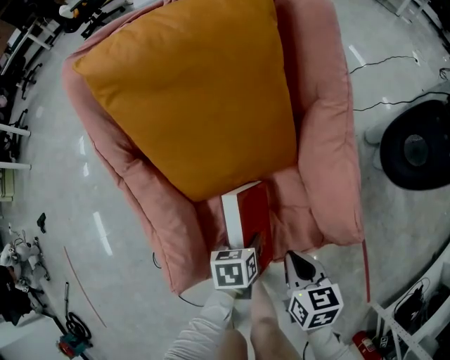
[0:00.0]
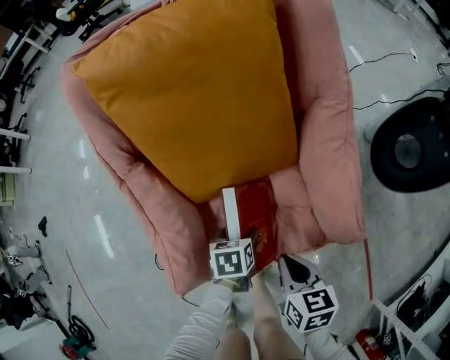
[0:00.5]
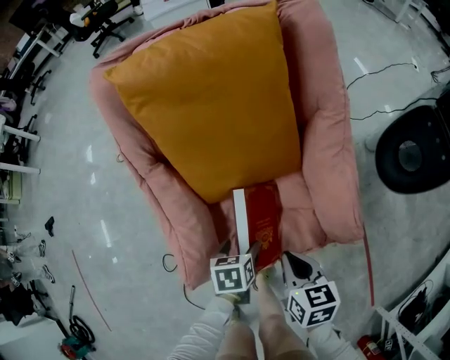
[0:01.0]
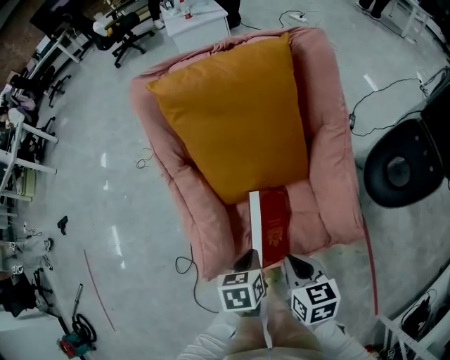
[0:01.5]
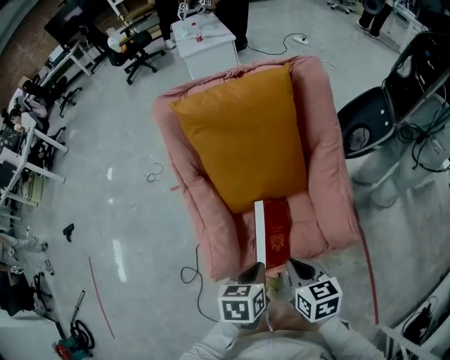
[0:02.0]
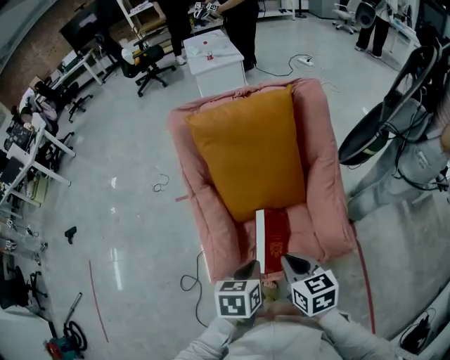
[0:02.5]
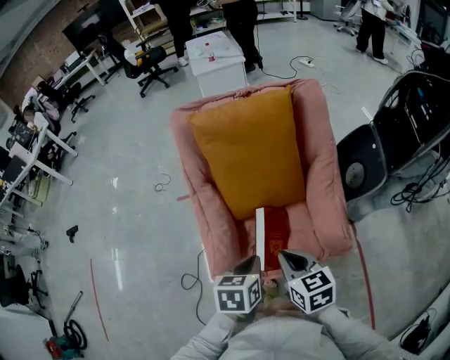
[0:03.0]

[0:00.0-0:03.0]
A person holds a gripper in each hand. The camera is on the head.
0:00.0 to 0:01.5: The right gripper moves upward and to the left, roughly 10 cm. Meanwhile the left gripper goes some 15 cm upward, and closes.
0:01.5 to 0:03.0: The grippers both shift upward by roughly 10 cm.

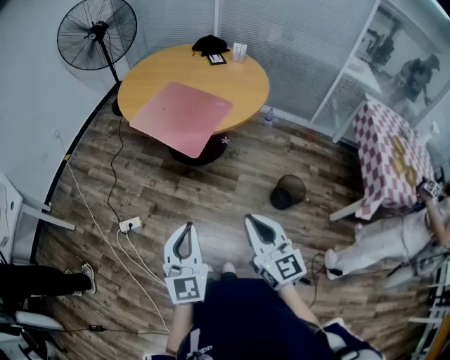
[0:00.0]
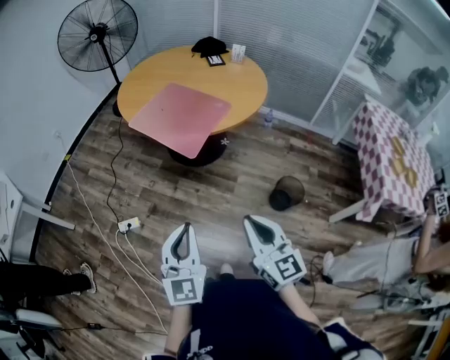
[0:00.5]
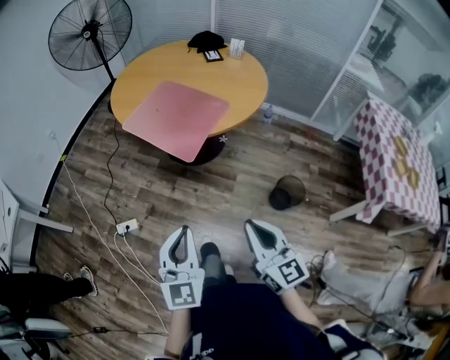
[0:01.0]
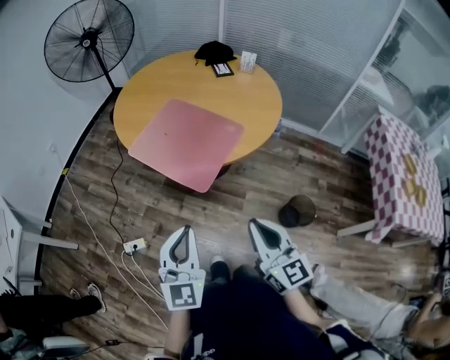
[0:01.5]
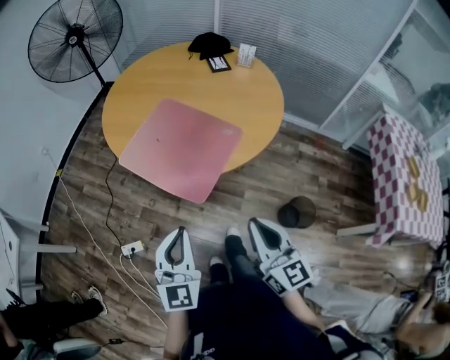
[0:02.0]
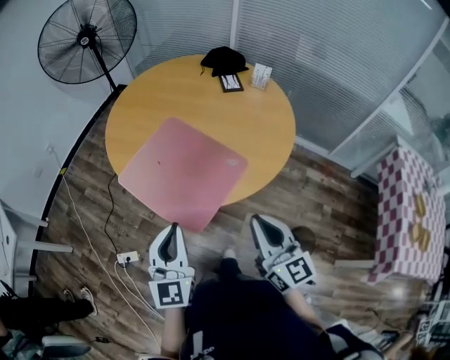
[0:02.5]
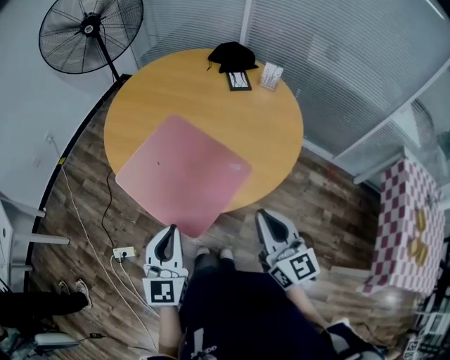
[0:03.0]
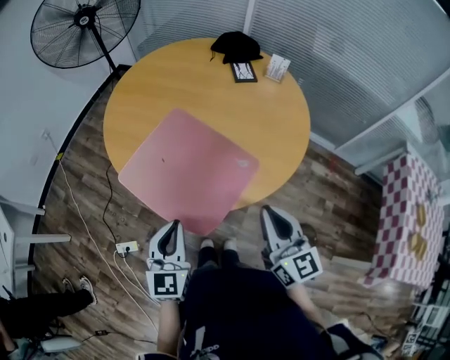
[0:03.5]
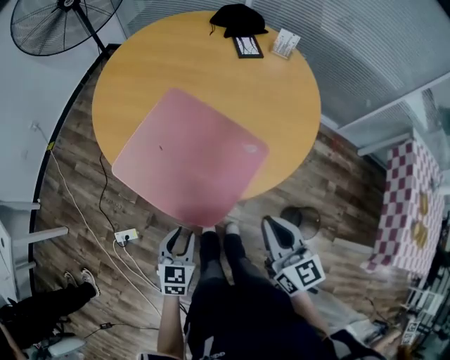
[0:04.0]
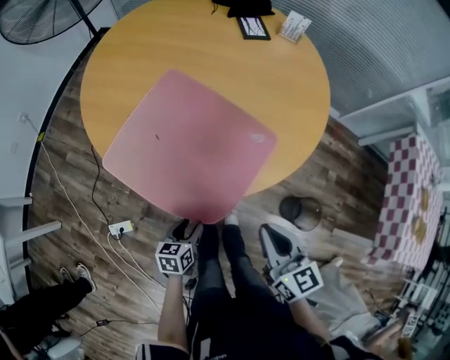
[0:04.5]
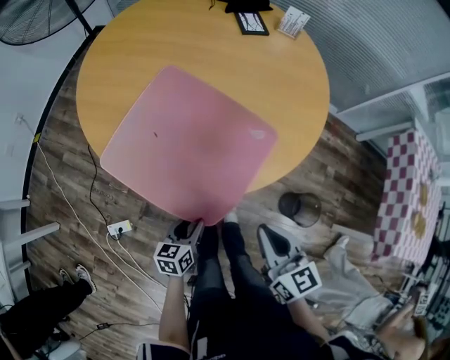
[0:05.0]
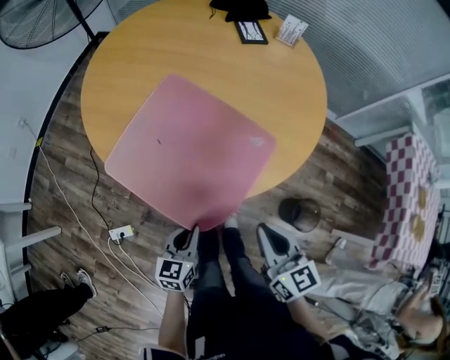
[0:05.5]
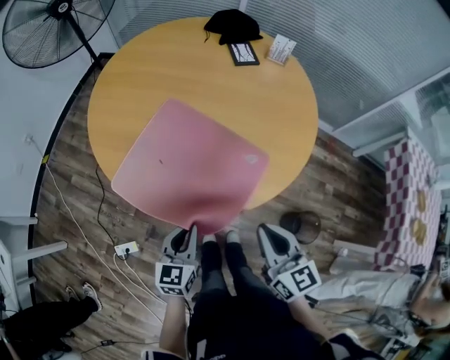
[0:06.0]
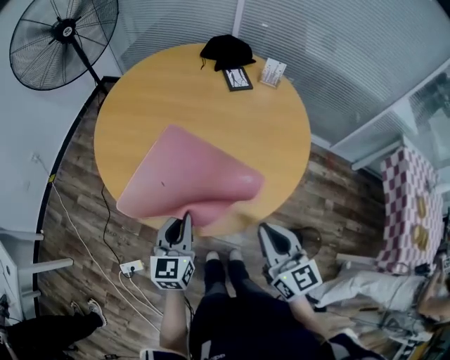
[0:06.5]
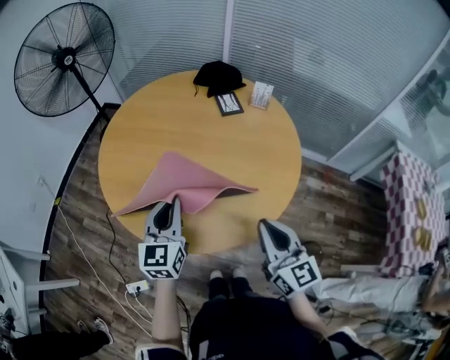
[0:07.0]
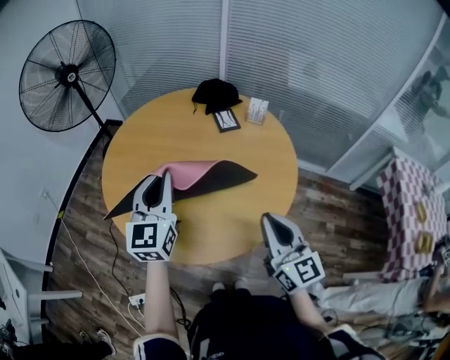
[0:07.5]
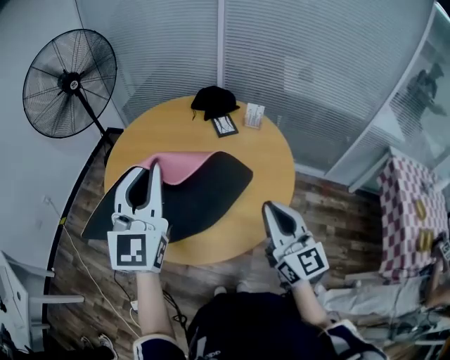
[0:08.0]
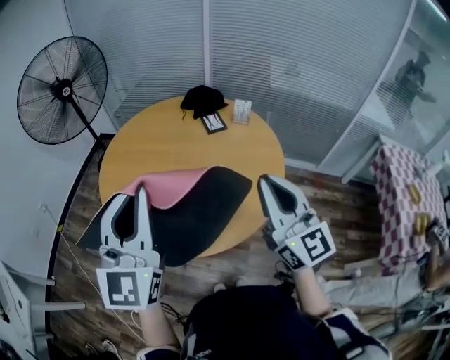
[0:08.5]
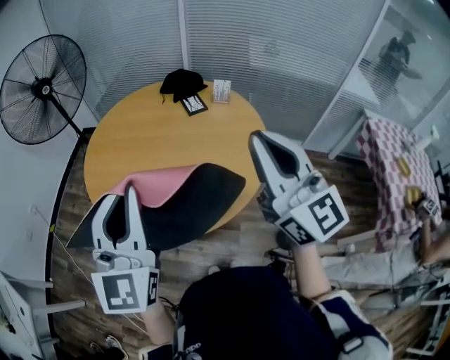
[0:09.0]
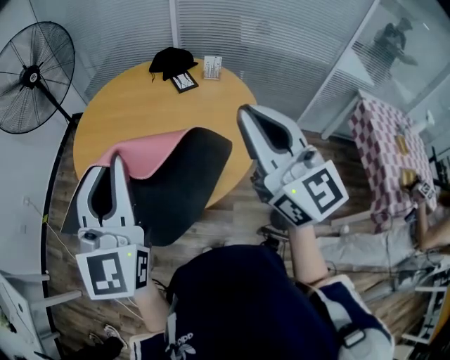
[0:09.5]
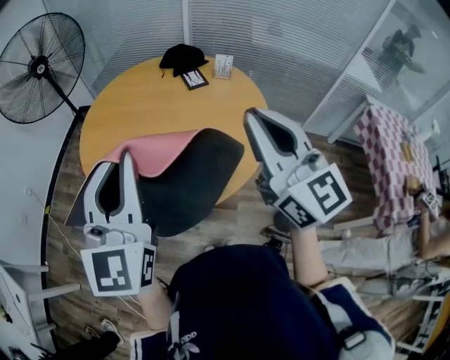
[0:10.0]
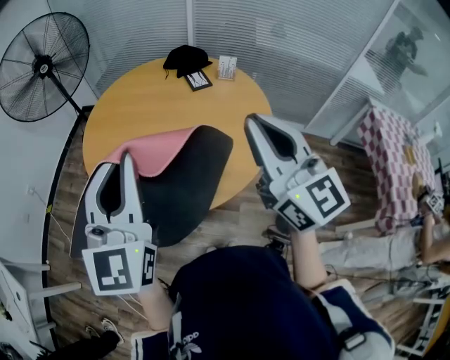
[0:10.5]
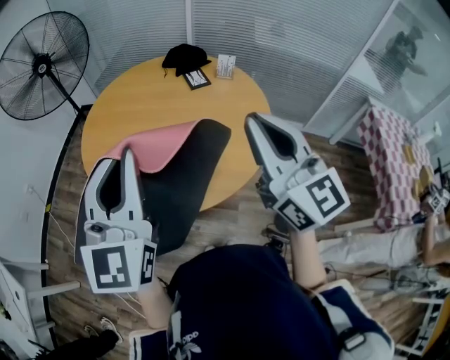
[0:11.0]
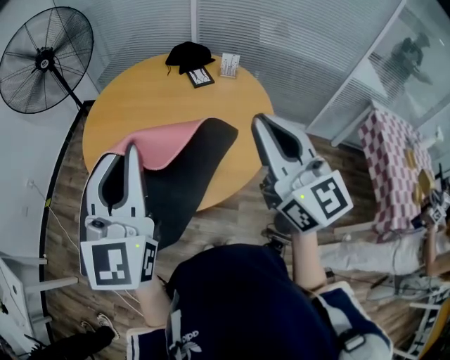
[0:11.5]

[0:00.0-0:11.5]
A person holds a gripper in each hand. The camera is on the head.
0:00.0 to 0:02.0: Both grippers move forward, some 25 cm.
0:02.0 to 0:04.0: The left gripper heads downward and forward, covering about 25 cm, angles its fingers downward, by about 30 degrees, and opens up, while the right gripper shifts roughly 15 cm forward.
0:04.0 to 0:06.0: The left gripper is displaced forward by some 5 cm, reaches roughly 10 cm downward, then returns, and closes up.
0:06.0 to 0:07.5: The left gripper shifts some 35 cm upward and forward, and turns by some 30 degrees. The right gripper is displaced upward and forward by approximately 15 cm, and rotates roughly 20 degrees.
0:07.5 to 0:09.5: The left gripper is displaced backward and upward by approximately 20 cm. The right gripper travels upward by some 20 cm.
0:09.5 to 0:11.5: The grippers move only a little.

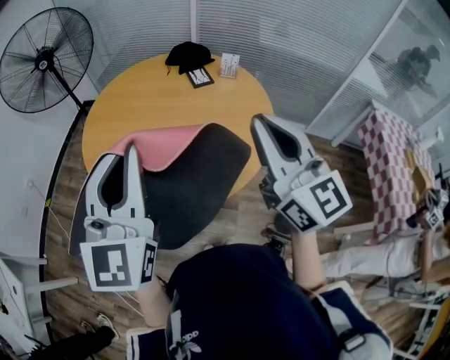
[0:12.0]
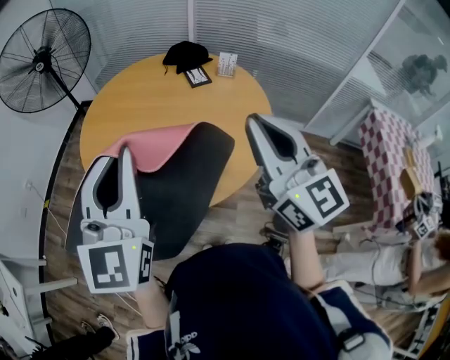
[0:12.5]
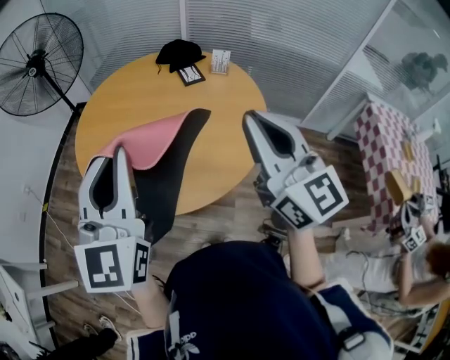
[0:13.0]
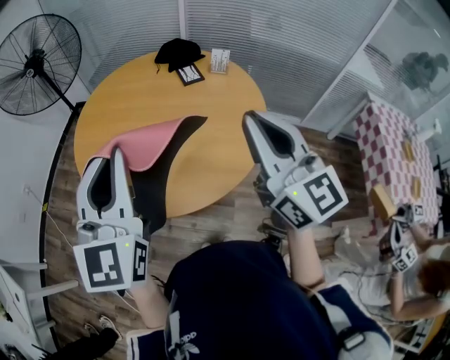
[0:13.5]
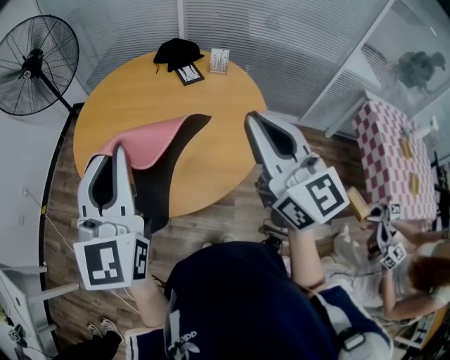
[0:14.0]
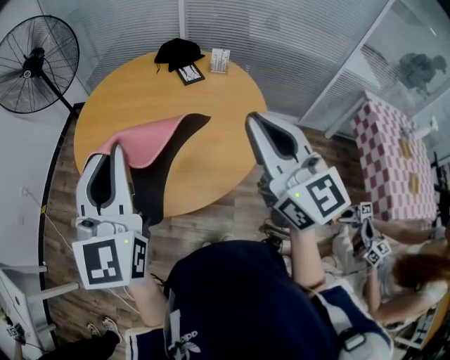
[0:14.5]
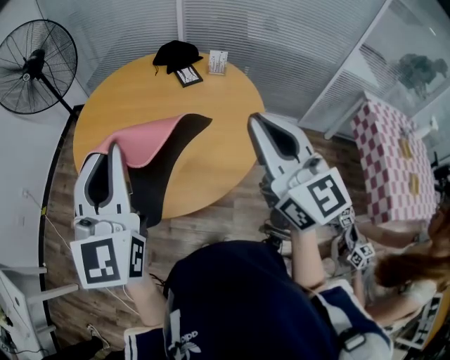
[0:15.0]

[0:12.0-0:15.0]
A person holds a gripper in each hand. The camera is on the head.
0:12.0 to 0:15.0: The grippers stay close to where they were, moving slightly.

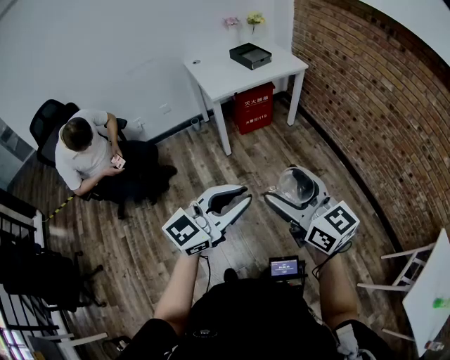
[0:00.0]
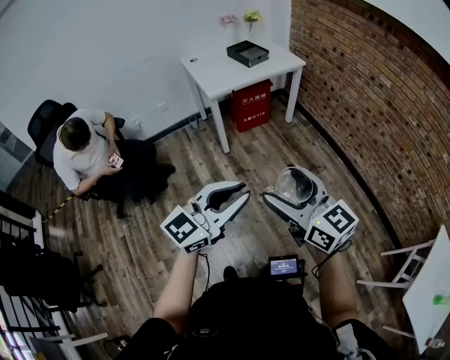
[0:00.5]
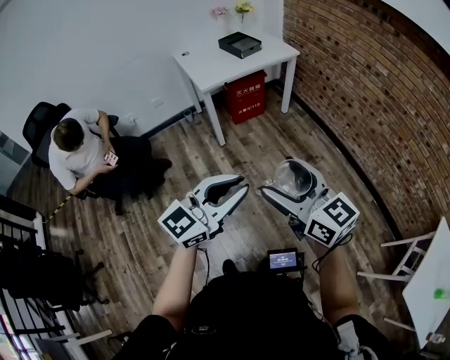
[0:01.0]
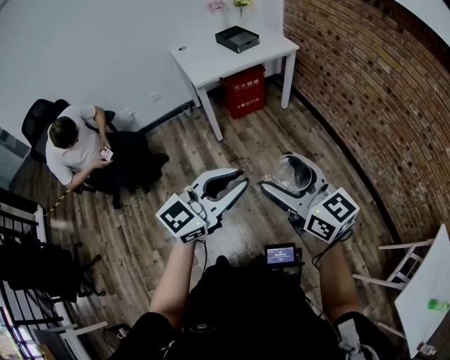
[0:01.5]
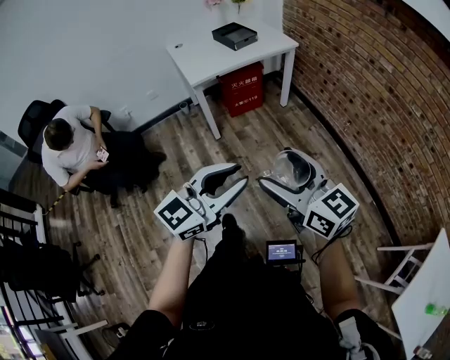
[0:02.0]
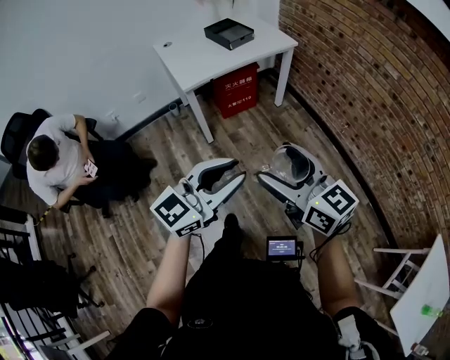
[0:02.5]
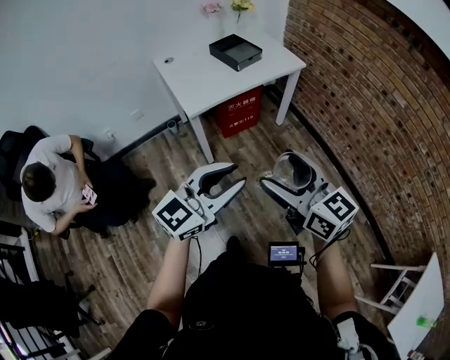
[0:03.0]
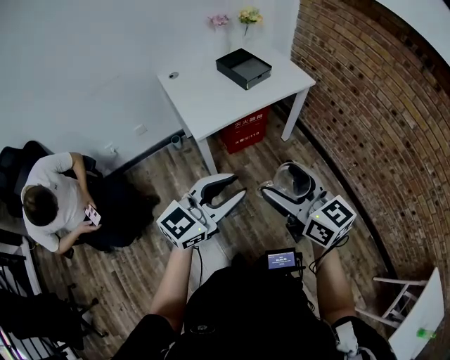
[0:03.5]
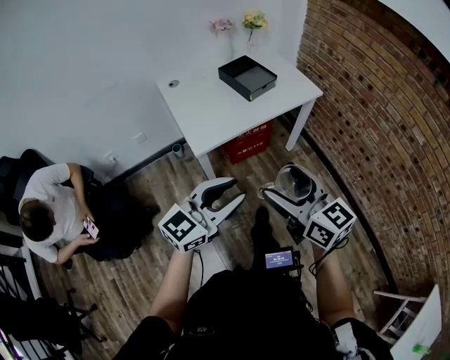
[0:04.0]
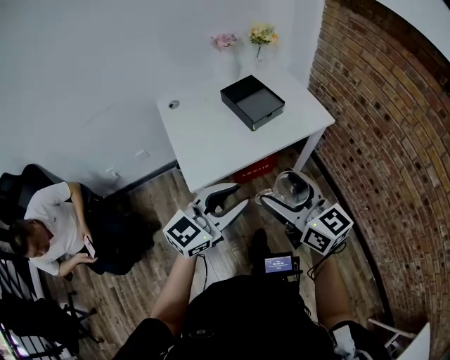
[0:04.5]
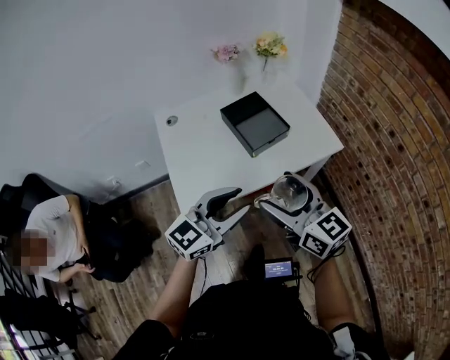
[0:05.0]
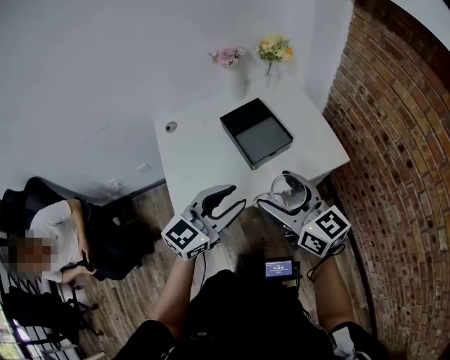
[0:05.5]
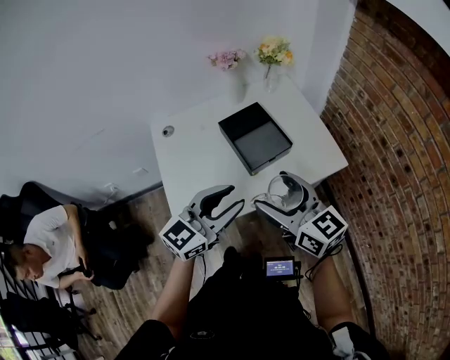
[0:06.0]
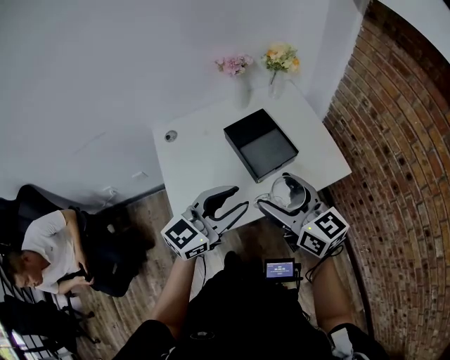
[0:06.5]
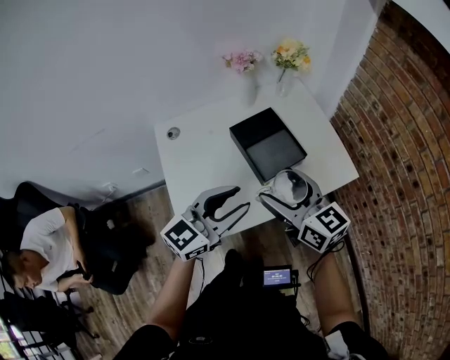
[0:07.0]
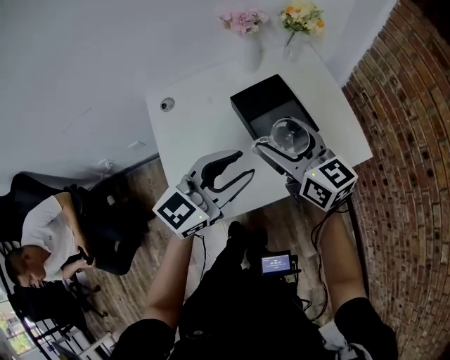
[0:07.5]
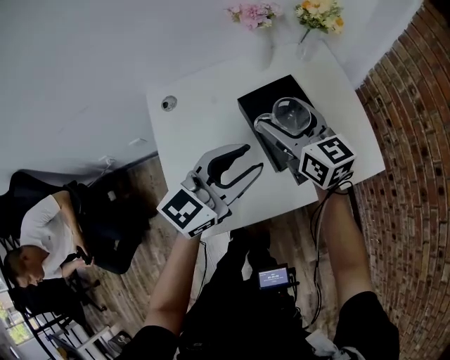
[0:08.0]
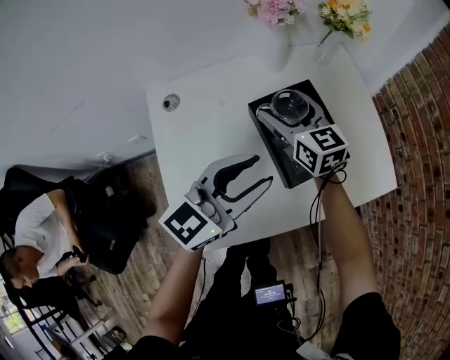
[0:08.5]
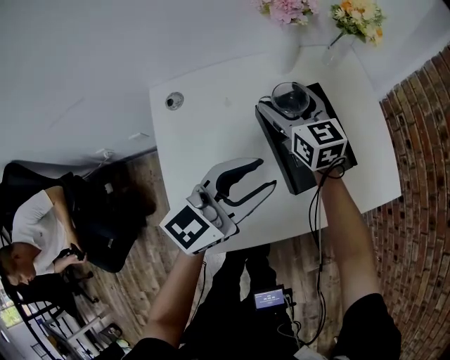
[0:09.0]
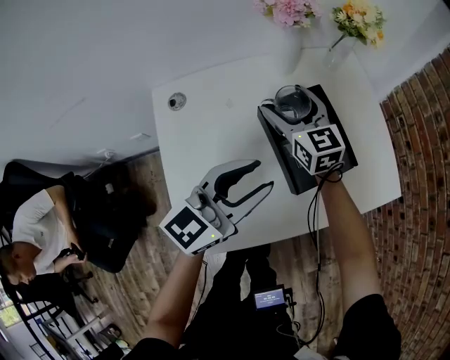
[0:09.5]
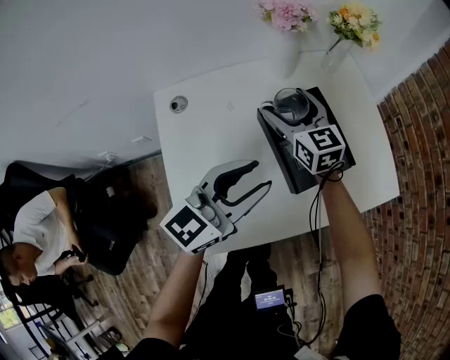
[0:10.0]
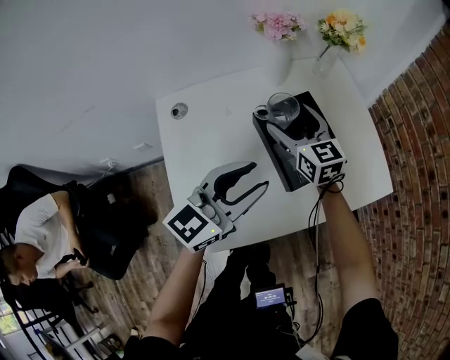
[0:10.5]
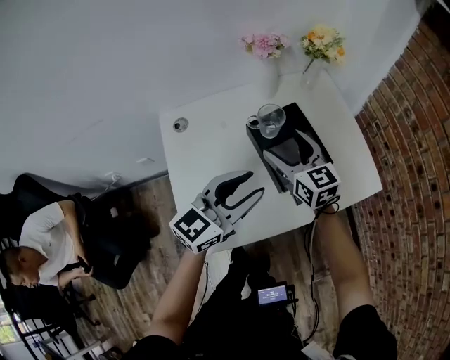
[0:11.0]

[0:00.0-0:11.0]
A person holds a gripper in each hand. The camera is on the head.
0:00.0 to 0:02.0: The two grippers go about 10 cm to the right and forward.
0:02.0 to 0:03.5: Both grippers move forward and to the left, roughly 35 cm.
0:03.5 to 0:05.5: The pair of grippers is taken forward, approximately 50 cm.
0:05.5 to 0:07.5: Both grippers travel together forward and to the left, approximately 15 cm.
0:07.5 to 0:09.0: The left gripper travels forward and downward by approximately 10 cm; the right gripper moves forward, downward and to the left, some 25 cm.
0:09.0 to 0:11.0: The left gripper changes place by about 5 cm; the right gripper goes approximately 10 cm backward and to the right.
